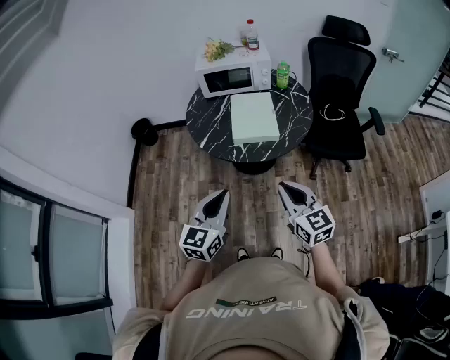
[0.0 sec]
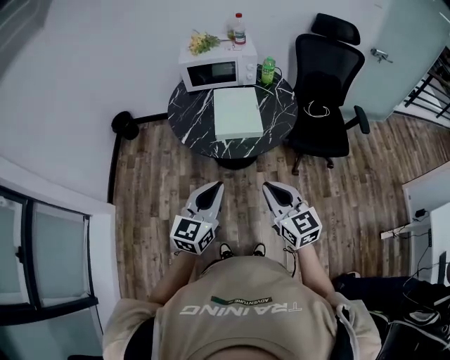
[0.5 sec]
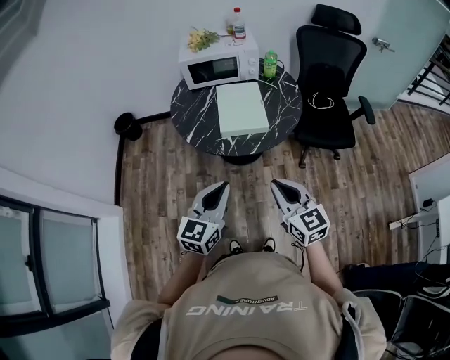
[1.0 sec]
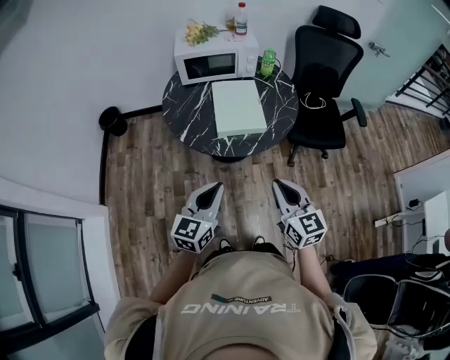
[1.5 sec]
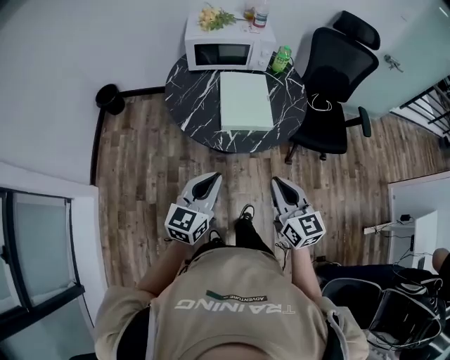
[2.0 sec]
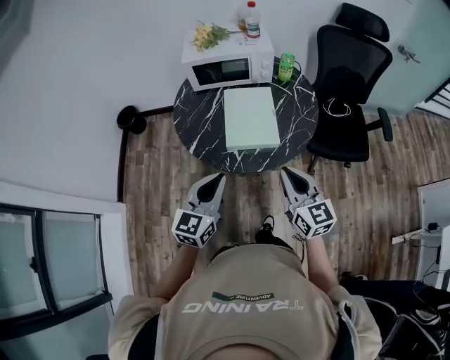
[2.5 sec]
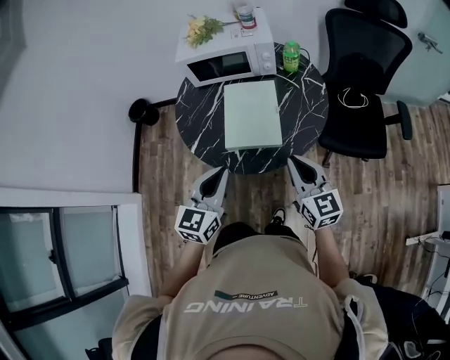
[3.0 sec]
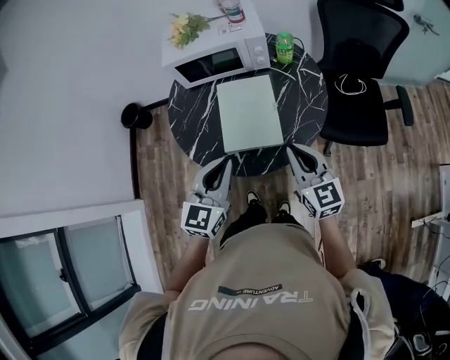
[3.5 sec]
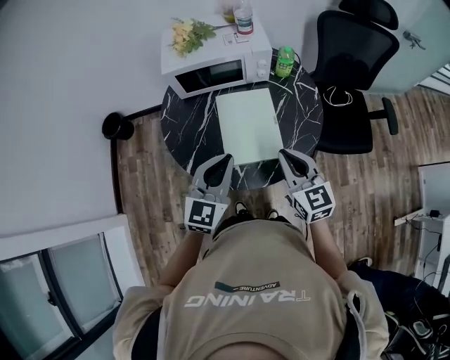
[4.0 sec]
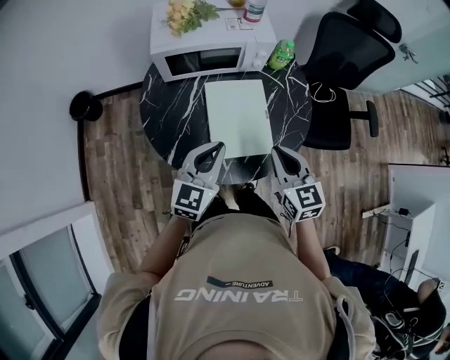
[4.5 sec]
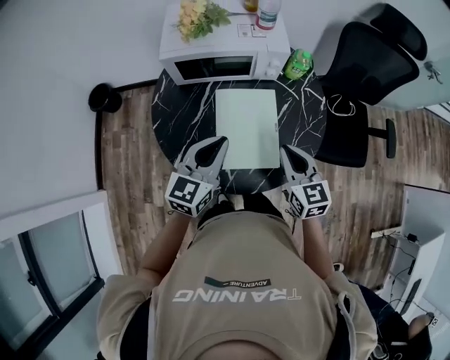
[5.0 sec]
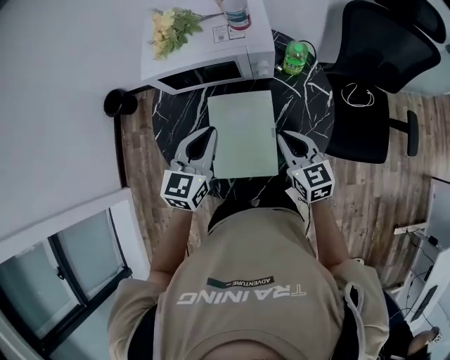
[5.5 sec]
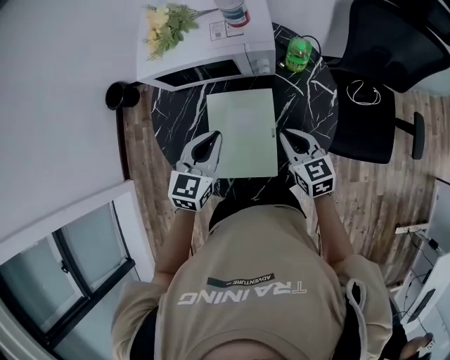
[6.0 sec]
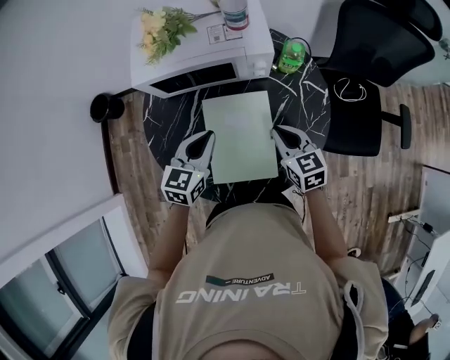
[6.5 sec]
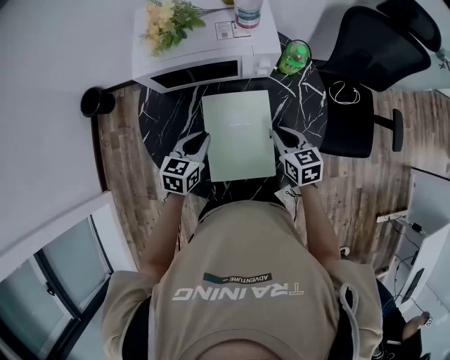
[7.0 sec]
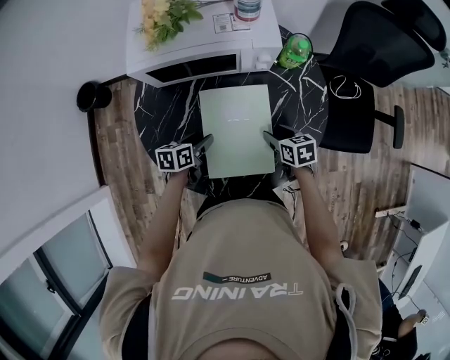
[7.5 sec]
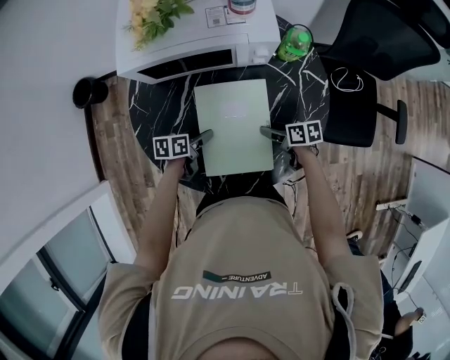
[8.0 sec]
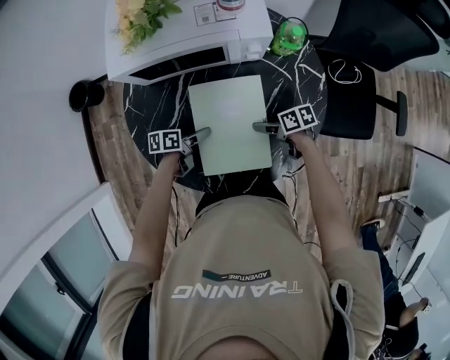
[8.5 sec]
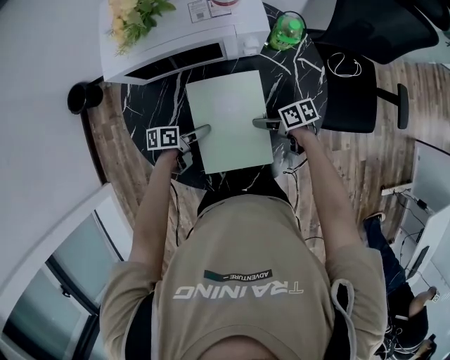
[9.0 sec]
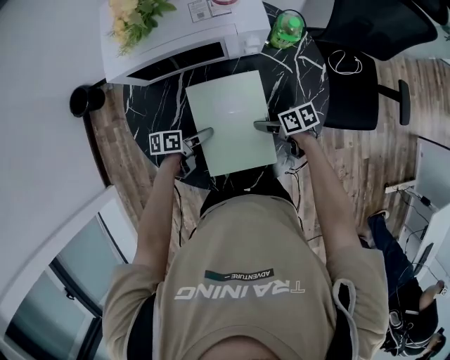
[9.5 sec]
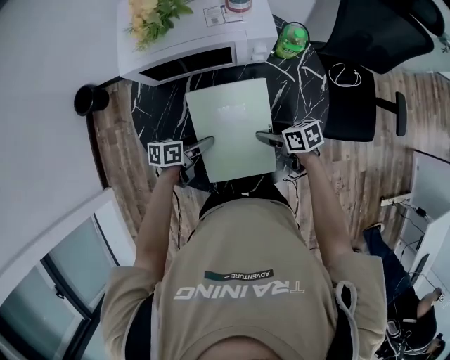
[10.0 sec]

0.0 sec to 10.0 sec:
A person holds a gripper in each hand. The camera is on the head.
0.0 sec to 2.0 sec: Both grippers move forward and to the left, about 10 cm.
2.0 sec to 4.0 sec: The grippers both shift forward by approximately 25 cm.
4.0 sec to 6.0 sec: Both grippers travel together forward and downward, approximately 20 cm. The left gripper swivels some 20 degrees.
6.0 sec to 8.0 sec: The two grippers go approximately 20 cm downward. The left gripper twists approximately 50 degrees counterclockwise, seen from behind, and opens. The right gripper rotates approximately 50 degrees, and opens its fingers.
8.0 sec to 10.0 sec: The right gripper goes about 5 cm upward.

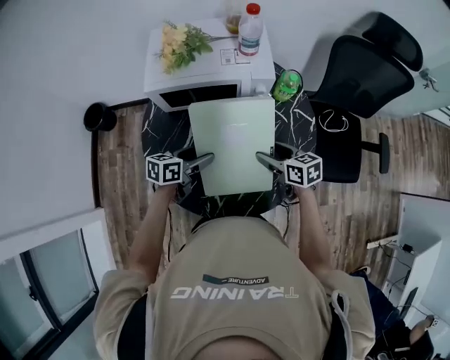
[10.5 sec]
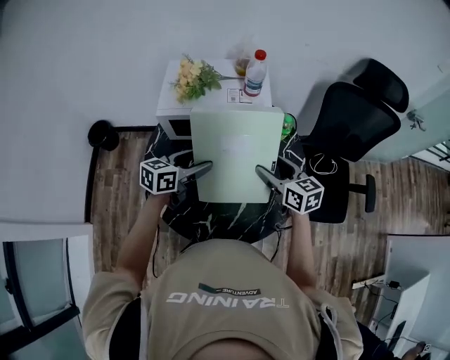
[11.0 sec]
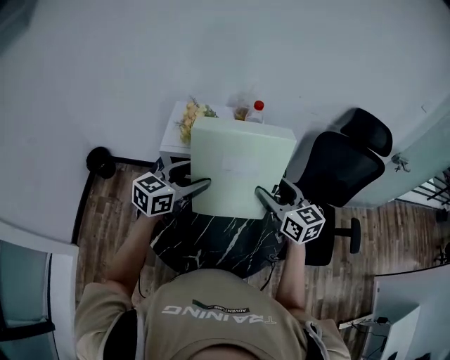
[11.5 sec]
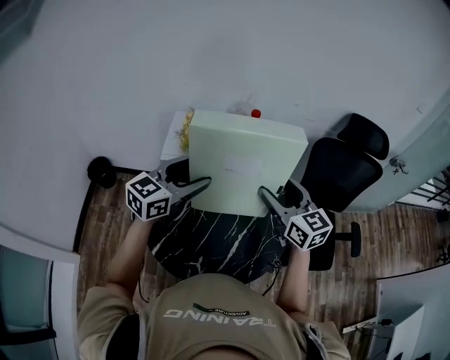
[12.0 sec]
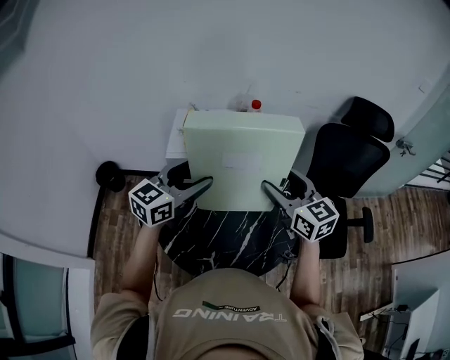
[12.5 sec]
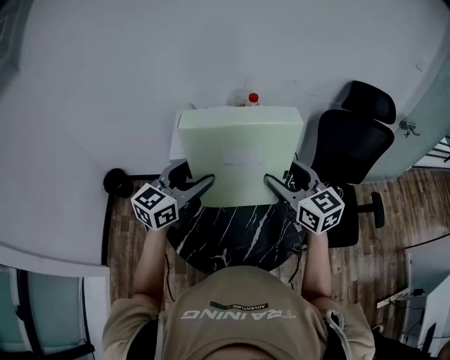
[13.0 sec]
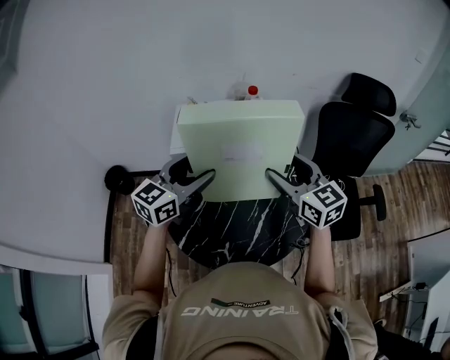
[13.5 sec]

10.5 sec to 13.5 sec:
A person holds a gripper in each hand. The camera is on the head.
10.5 sec to 12.0 sec: The two grippers go some 30 cm upward. The right gripper changes its angle by approximately 40 degrees; the left gripper changes its angle by some 50 degrees.
12.0 sec to 13.5 sec: The two grippers keep their place.

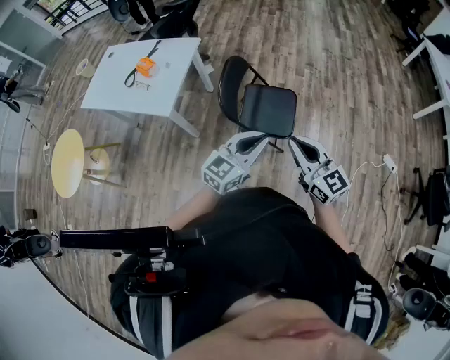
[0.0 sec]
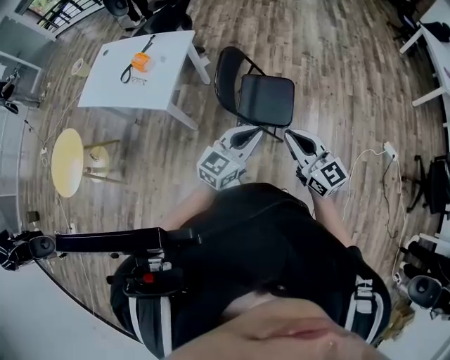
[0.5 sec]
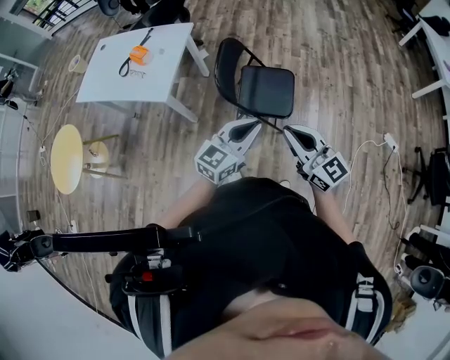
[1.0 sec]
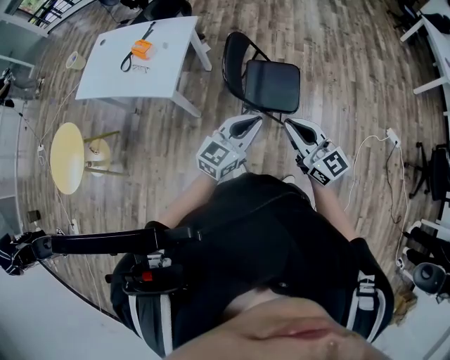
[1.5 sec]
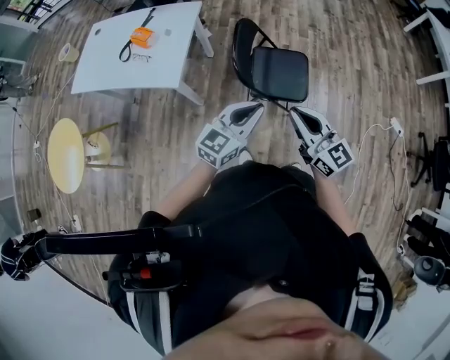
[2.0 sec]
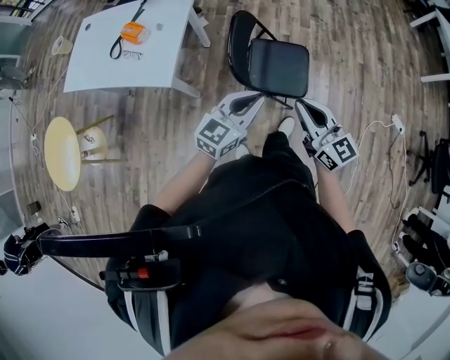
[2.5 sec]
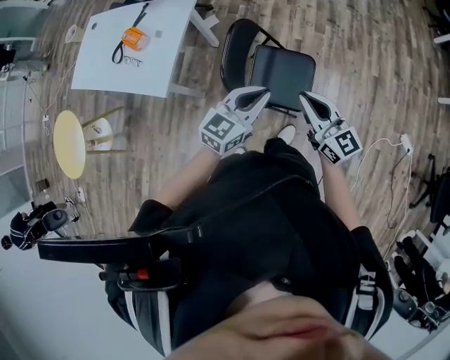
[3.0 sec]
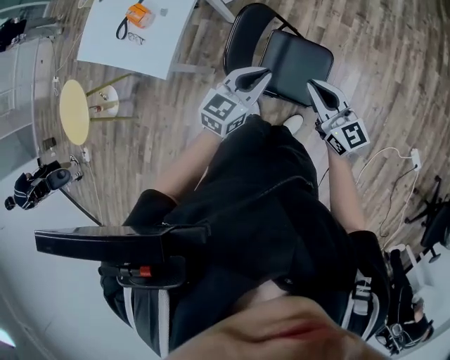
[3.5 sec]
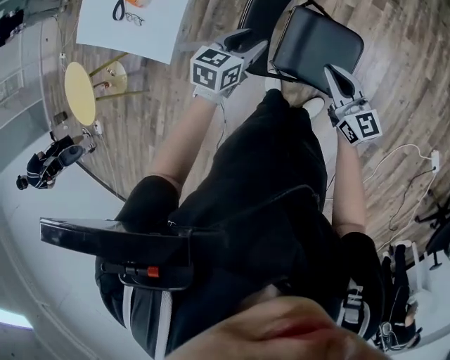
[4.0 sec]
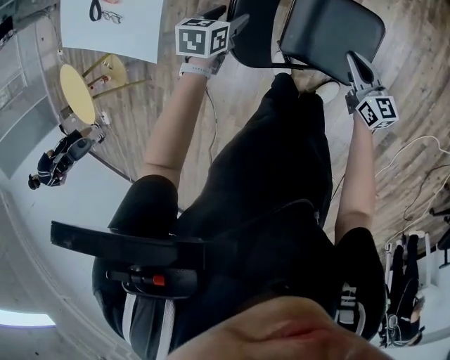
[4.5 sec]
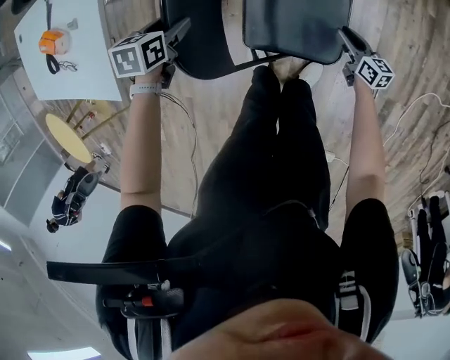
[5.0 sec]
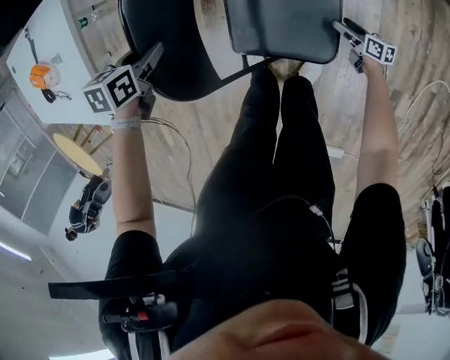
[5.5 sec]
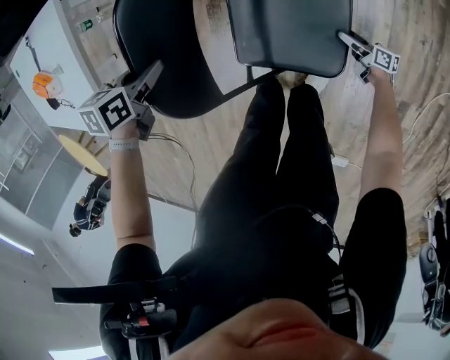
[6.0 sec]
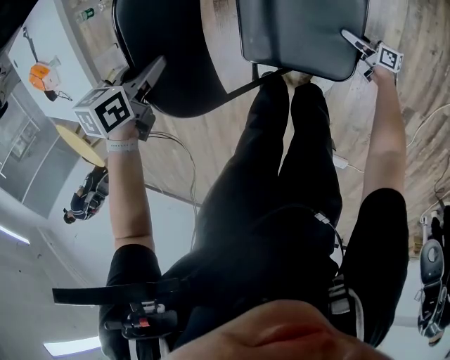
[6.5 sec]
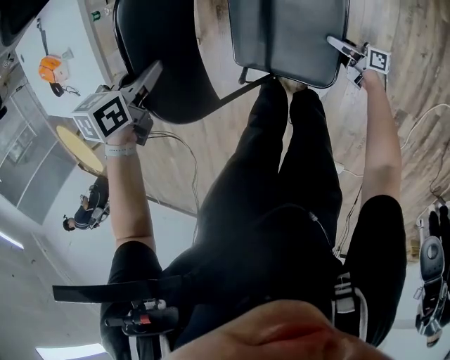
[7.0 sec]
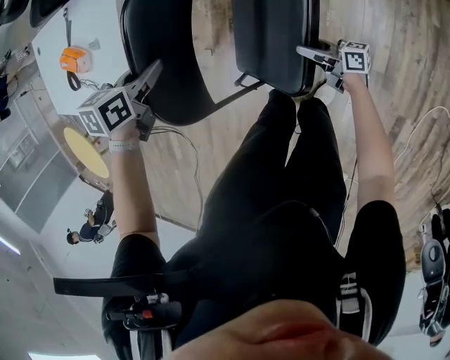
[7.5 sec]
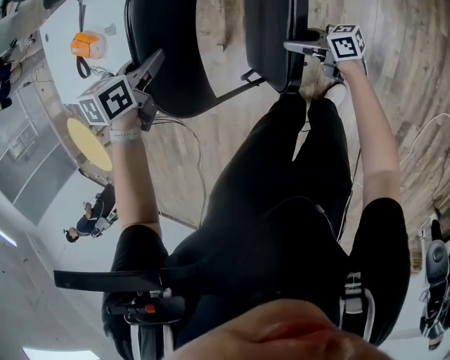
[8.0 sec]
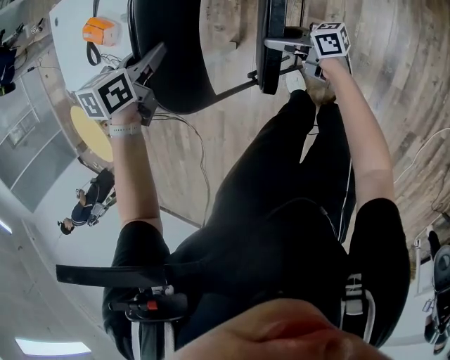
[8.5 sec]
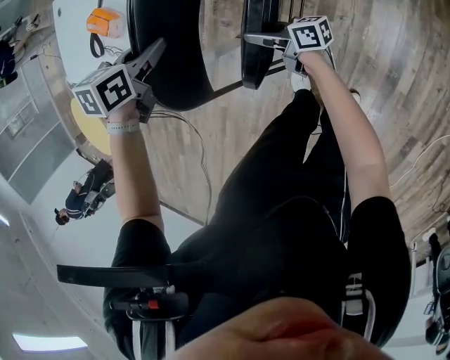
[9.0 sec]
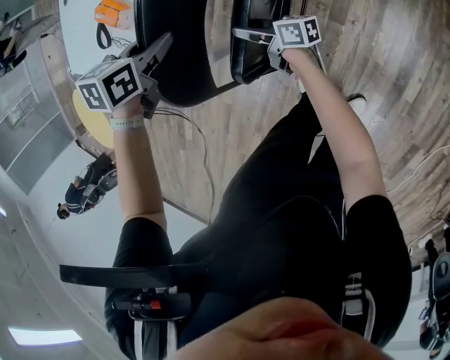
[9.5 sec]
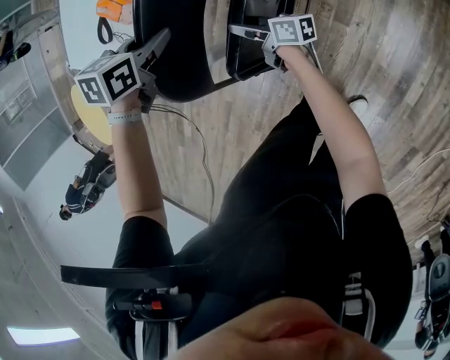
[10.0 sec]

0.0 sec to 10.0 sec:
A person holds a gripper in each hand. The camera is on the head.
0.0 sec to 2.0 sec: The grippers both shift to the left by about 15 cm.
2.0 sec to 4.0 sec: Both grippers move forward and downward, about 40 cm. The left gripper tips its fingers downward by roughly 30 degrees, and opens up.
4.0 sec to 6.0 sec: The left gripper is displaced downward and to the left by some 20 cm, and changes its angle by roughly 30 degrees. The right gripper goes some 50 cm downward, rolls clockwise, seen from behind, by approximately 60 degrees, and opens.
6.0 sec to 8.0 sec: The left gripper shifts some 20 cm upward and to the left. The right gripper travels to the left and upward by roughly 40 cm, swivels about 40 degrees, and closes.
8.0 sec to 10.0 sec: The right gripper travels to the left and forward by about 30 cm; the left gripper shifts some 15 cm to the left and forward.

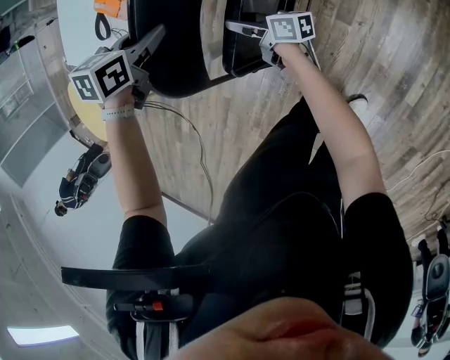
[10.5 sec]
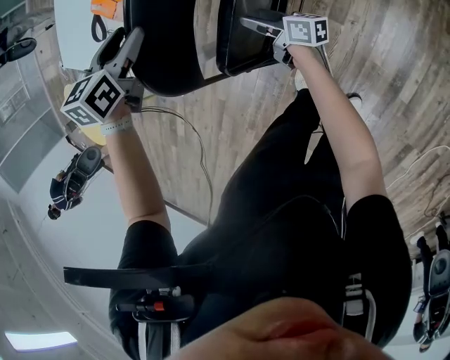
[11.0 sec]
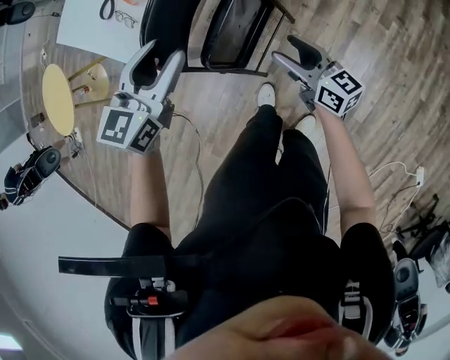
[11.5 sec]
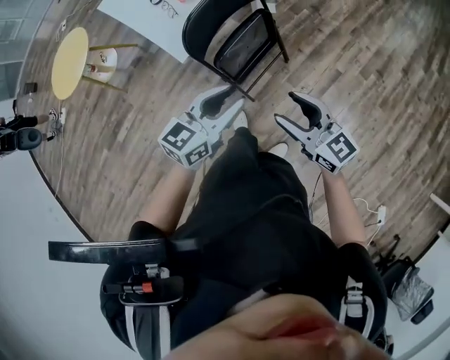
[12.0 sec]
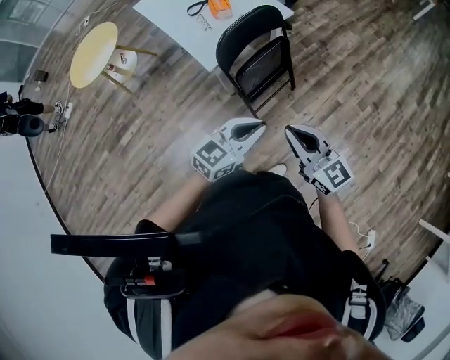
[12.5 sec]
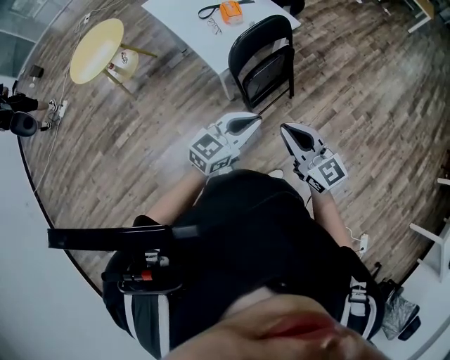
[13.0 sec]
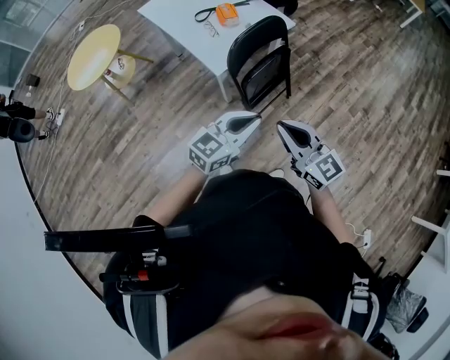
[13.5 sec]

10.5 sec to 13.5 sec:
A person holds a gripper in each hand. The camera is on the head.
10.5 sec to 12.0 sec: The right gripper travels upward and backward by approximately 50 cm, and rotates around the line of its fingers by about 60 degrees, counterclockwise from behind. The left gripper travels backward and upward by roughly 40 cm, and tips its fingers upward by some 50 degrees.
12.0 sec to 13.5 sec: The left gripper heads backward, to the left and upward, covering about 15 cm, and closes its fingers. Meanwhile the right gripper is displaced to the left, upward and backward by about 20 cm, and closes its fingers.
